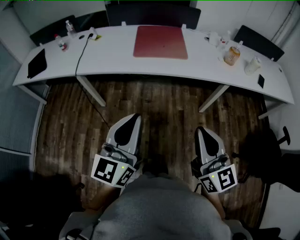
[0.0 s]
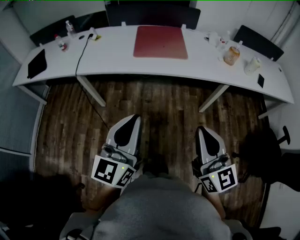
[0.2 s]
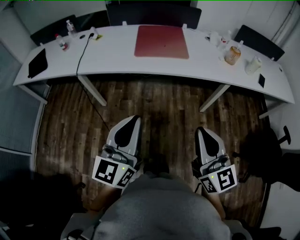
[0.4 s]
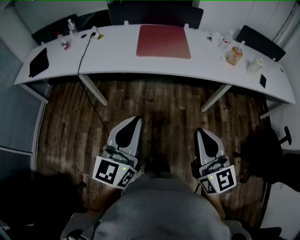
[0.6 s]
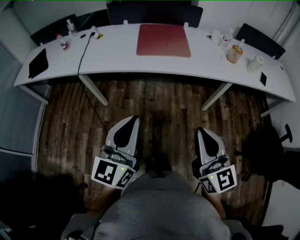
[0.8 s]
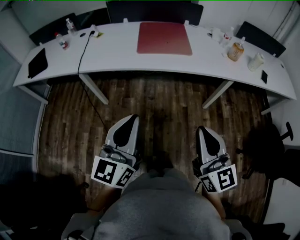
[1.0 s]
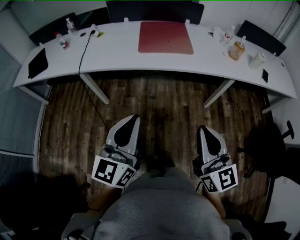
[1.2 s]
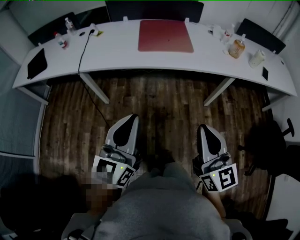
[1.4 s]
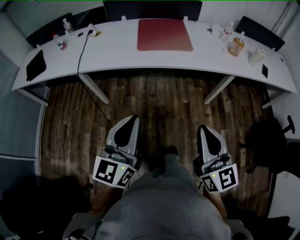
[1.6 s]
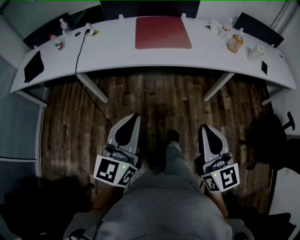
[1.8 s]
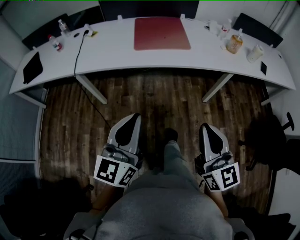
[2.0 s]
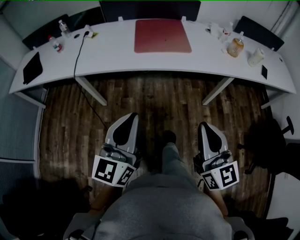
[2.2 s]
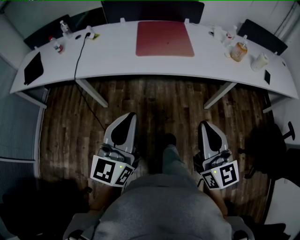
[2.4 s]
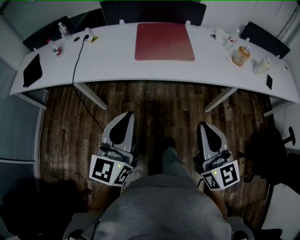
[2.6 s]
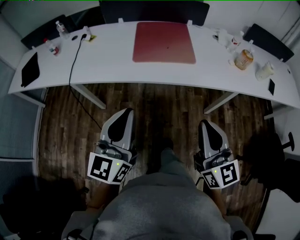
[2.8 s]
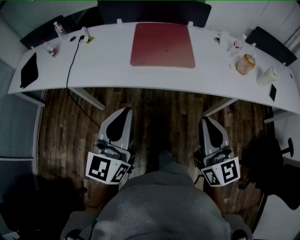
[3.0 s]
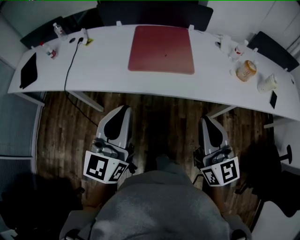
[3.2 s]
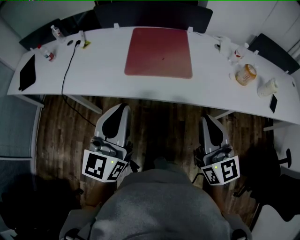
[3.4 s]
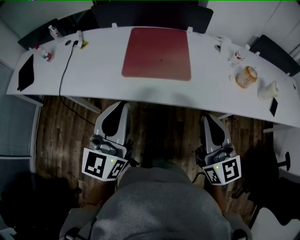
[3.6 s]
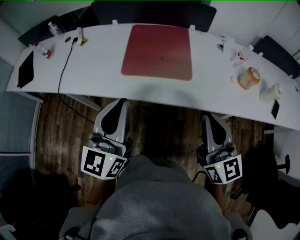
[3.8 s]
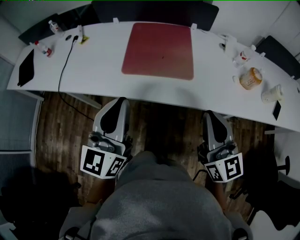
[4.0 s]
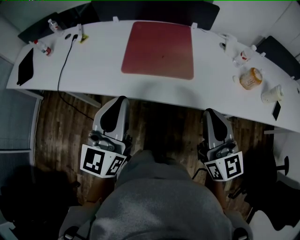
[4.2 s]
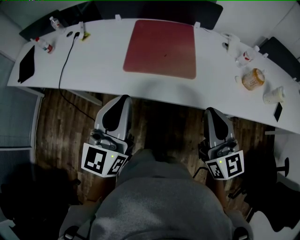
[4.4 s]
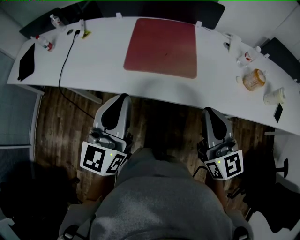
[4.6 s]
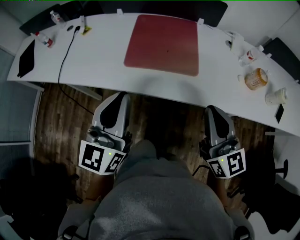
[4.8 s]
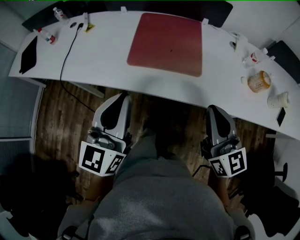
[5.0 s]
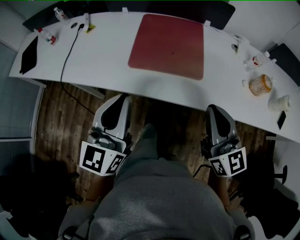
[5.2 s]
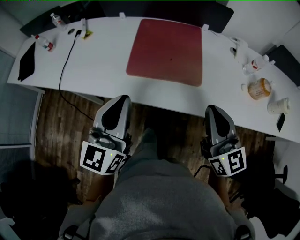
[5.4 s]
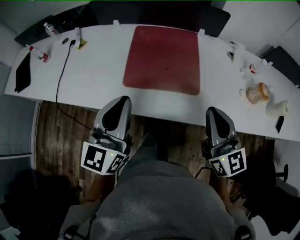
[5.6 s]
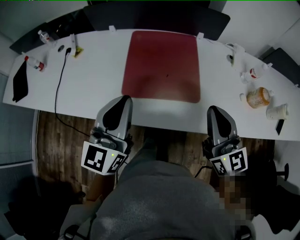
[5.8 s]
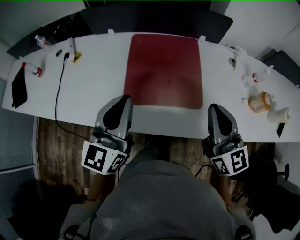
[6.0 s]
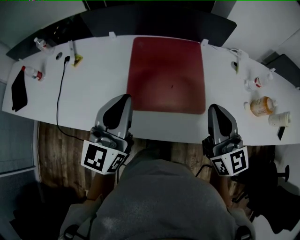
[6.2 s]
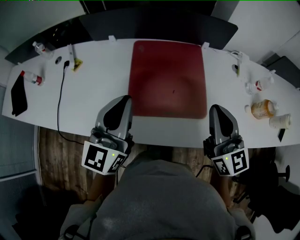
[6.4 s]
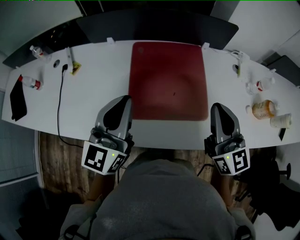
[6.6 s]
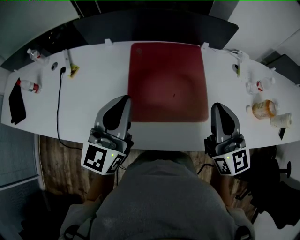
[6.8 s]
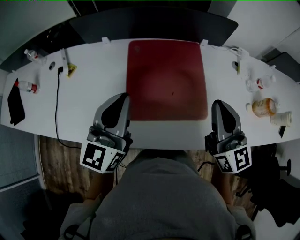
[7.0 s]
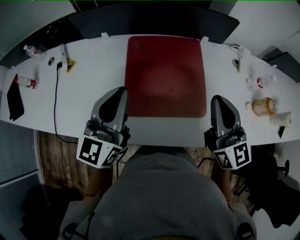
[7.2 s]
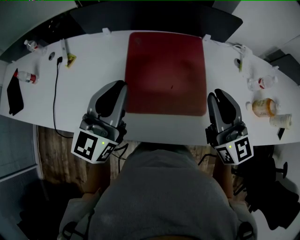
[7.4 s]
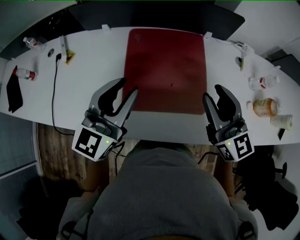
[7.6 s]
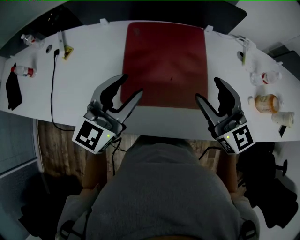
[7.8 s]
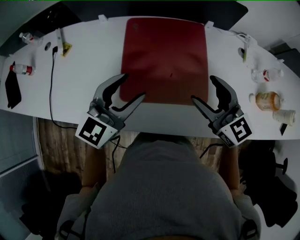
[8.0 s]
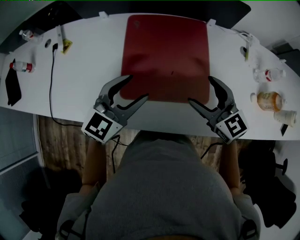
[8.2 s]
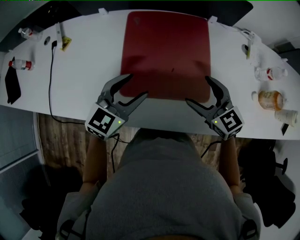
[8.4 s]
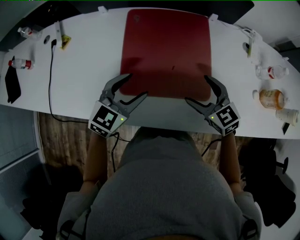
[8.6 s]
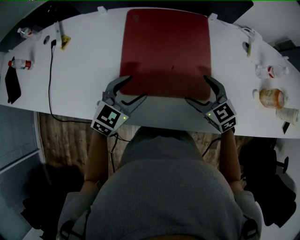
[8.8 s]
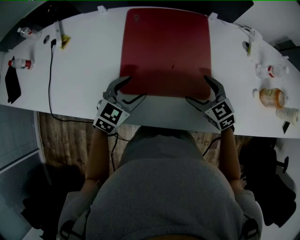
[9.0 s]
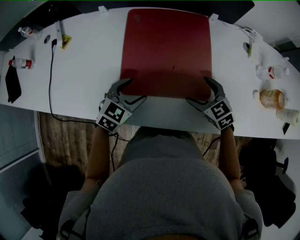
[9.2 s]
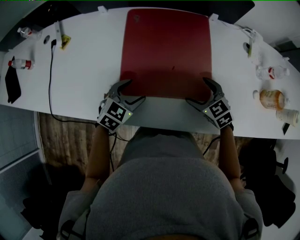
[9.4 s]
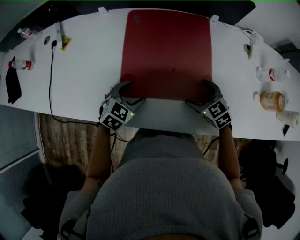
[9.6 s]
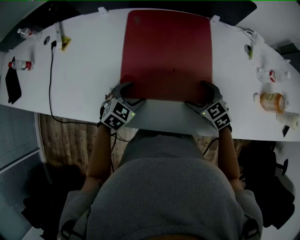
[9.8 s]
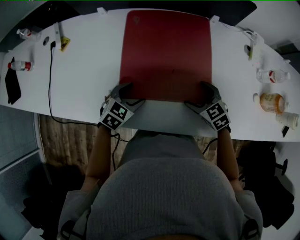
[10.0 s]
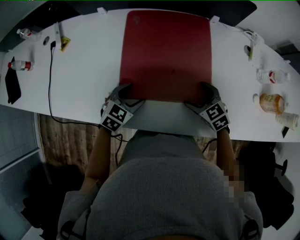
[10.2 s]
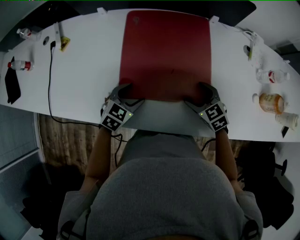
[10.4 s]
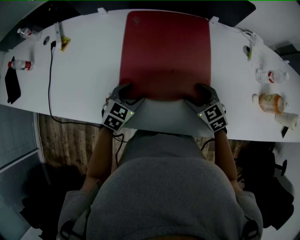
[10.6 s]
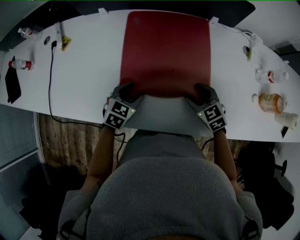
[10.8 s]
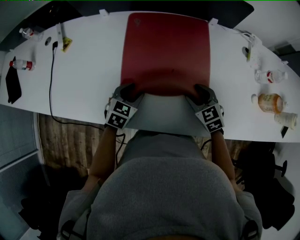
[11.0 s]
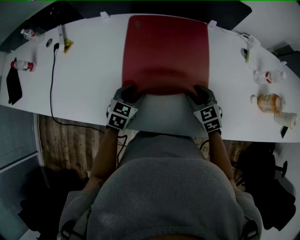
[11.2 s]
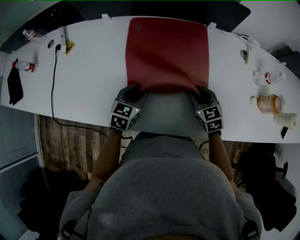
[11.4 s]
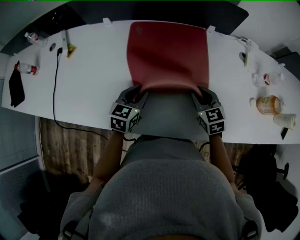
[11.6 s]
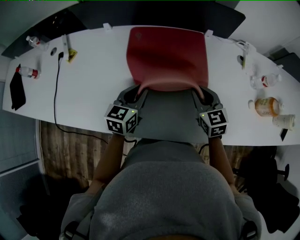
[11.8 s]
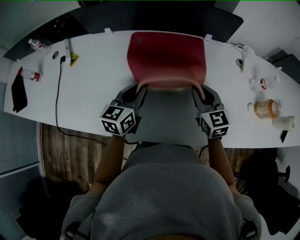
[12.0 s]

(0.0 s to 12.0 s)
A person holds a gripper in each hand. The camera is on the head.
0.0 s - 1.6 s: The right gripper moves roughly 5 cm; the left gripper shifts about 5 cm to the left.
1.6 s - 3.0 s: The two grippers go some 20 cm forward.
3.0 s - 4.4 s: The two grippers go approximately 15 cm forward and to the right.
4.4 s - 6.0 s: Both grippers move forward, about 20 cm.
6.0 s - 7.6 s: The two grippers go about 10 cm forward. The left gripper opens its fingers.
7.6 s - 9.0 s: The grippers both shift downward by some 25 cm. The left gripper tips its fingers downward by about 30 degrees, and opens up, while the right gripper tips its fingers downward by roughly 40 degrees, and opens its fingers.
9.0 s - 10.4 s: The left gripper is displaced downward by roughly 5 cm.
10.4 s - 12.0 s: The two grippers go approximately 15 cm upward and forward. The left gripper turns by roughly 40 degrees, and closes up. The right gripper swivels roughly 30 degrees, and closes up.

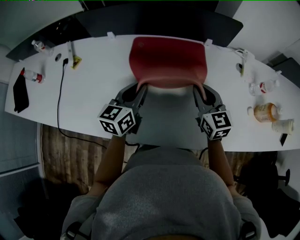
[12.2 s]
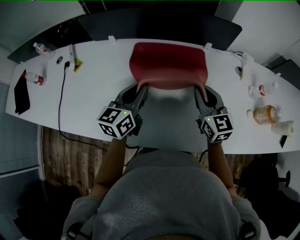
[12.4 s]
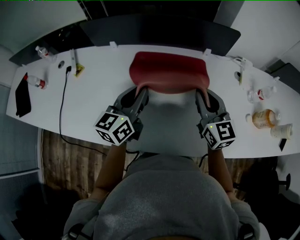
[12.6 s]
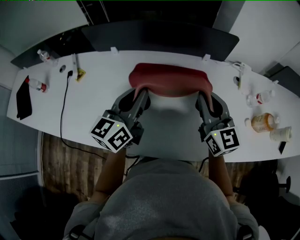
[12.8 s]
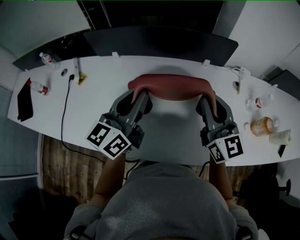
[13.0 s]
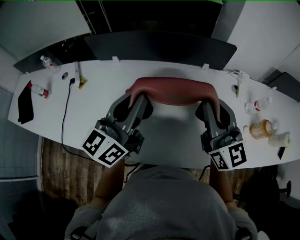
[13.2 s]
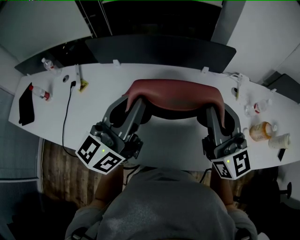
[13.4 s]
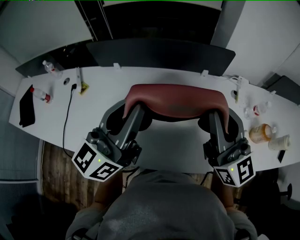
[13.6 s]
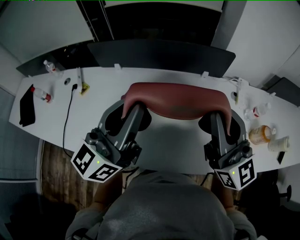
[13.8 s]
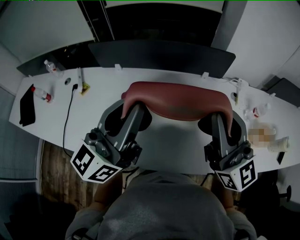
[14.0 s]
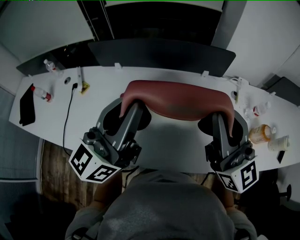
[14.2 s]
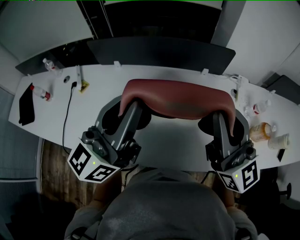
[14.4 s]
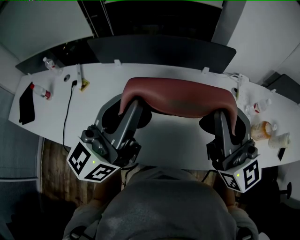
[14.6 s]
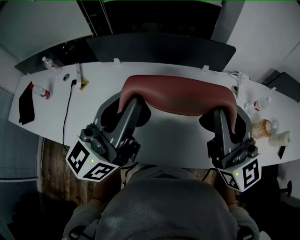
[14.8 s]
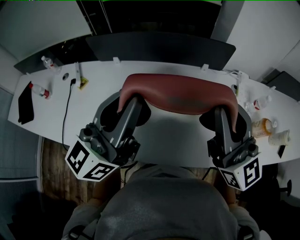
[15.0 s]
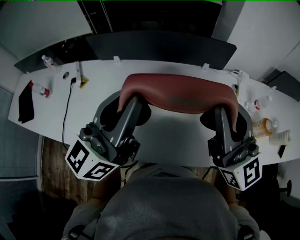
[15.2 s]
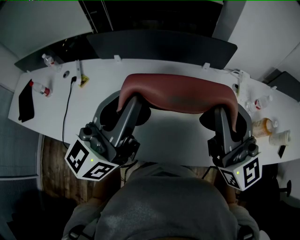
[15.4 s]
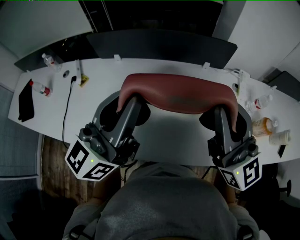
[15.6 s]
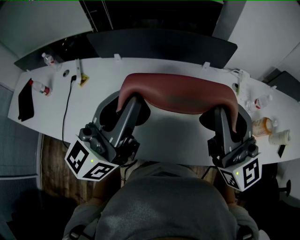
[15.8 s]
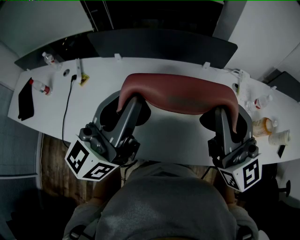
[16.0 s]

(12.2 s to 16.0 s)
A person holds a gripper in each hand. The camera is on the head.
12.2 s - 13.4 s: The grippers both shift upward by some 20 cm. The left gripper swivels approximately 30 degrees; the right gripper angles its fingers upward, by approximately 30 degrees.
13.4 s - 14.8 s: The right gripper goes roughly 5 cm upward. The left gripper moves roughly 5 cm.
14.8 s - 16.0 s: The two grippers keep their place.

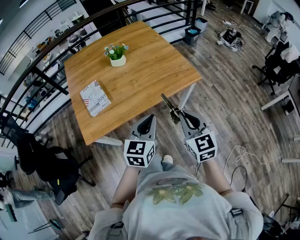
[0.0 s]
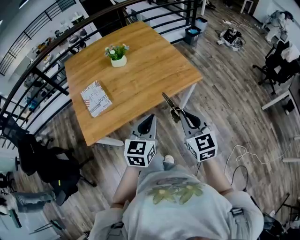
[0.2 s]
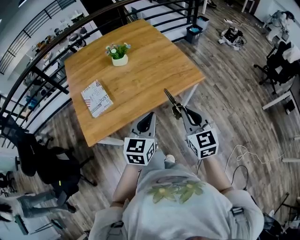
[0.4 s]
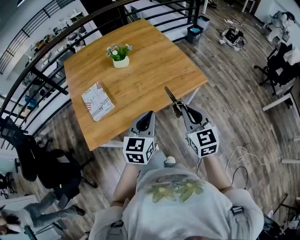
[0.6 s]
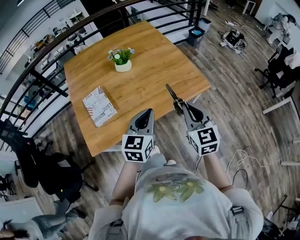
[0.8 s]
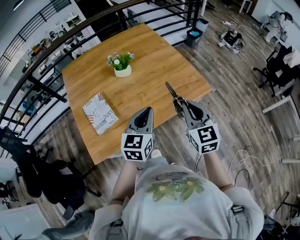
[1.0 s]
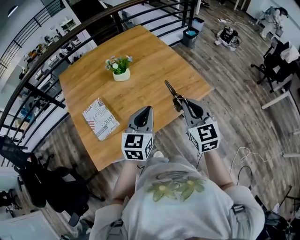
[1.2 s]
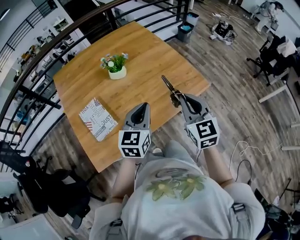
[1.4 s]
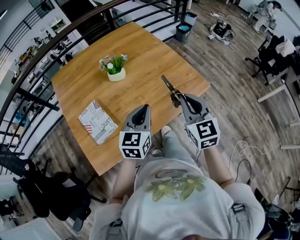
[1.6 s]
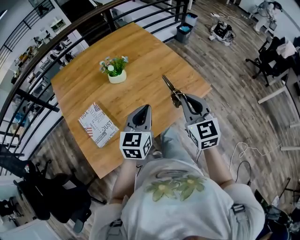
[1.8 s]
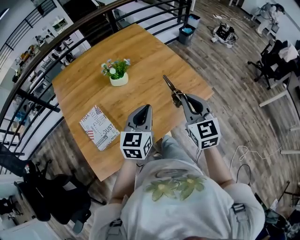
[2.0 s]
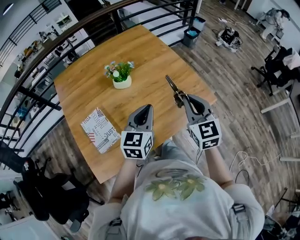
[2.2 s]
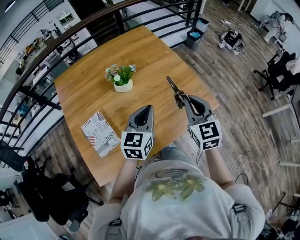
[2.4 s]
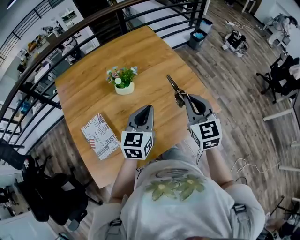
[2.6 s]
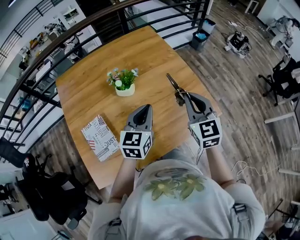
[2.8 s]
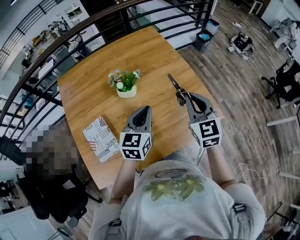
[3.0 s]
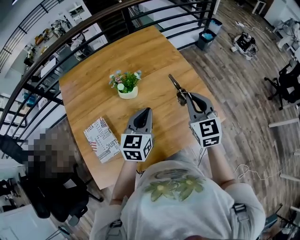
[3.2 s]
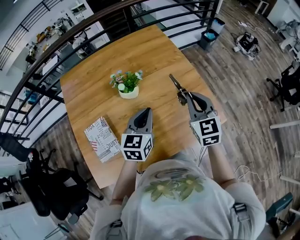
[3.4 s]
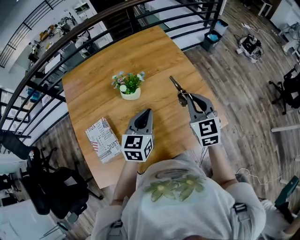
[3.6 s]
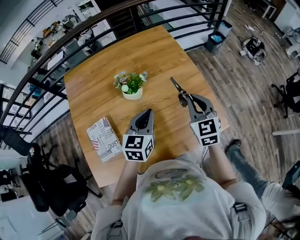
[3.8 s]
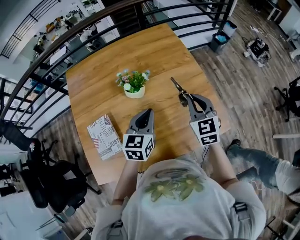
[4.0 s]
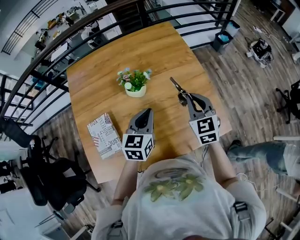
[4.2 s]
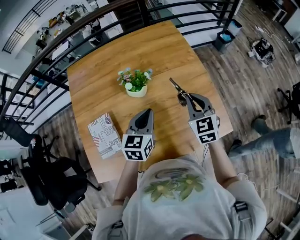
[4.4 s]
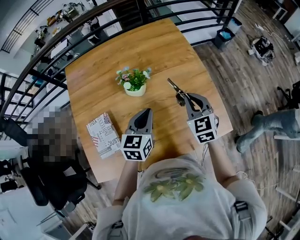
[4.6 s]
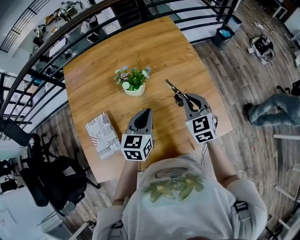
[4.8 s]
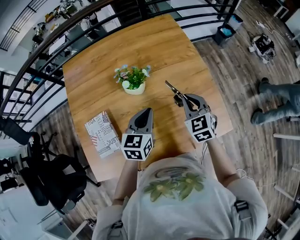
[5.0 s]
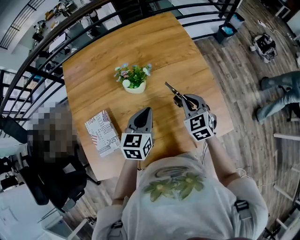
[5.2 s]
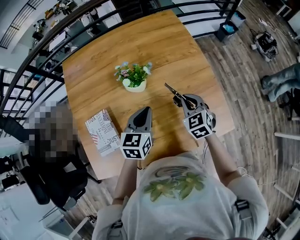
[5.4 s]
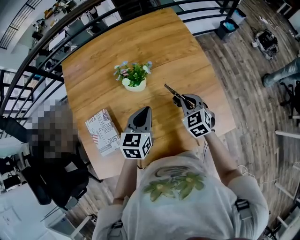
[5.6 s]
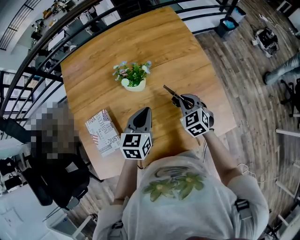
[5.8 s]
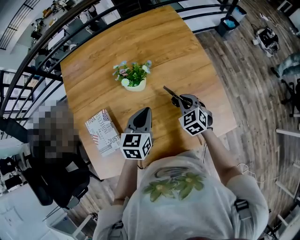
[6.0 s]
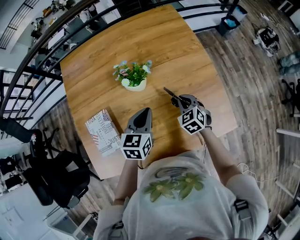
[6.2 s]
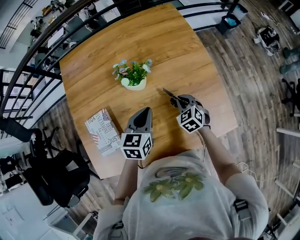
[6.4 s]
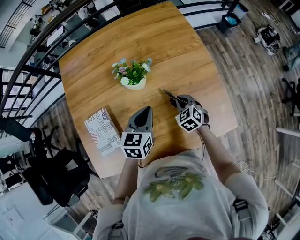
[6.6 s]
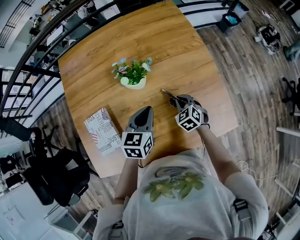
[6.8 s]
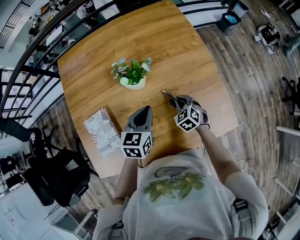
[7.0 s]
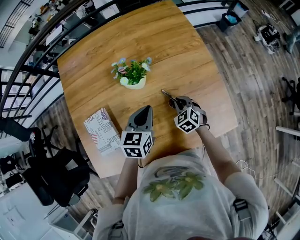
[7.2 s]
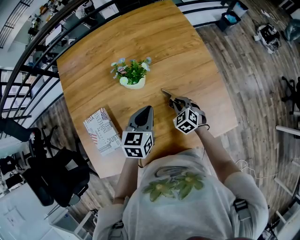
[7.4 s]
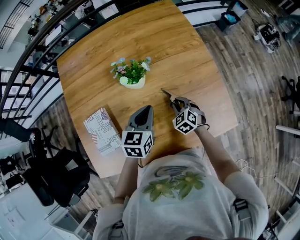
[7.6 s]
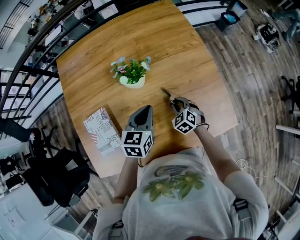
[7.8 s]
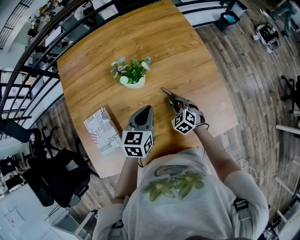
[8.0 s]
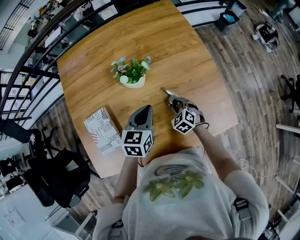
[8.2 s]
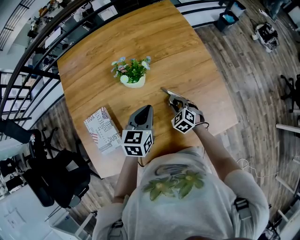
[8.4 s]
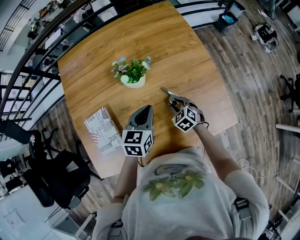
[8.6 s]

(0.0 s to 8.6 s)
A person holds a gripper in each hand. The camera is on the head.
0.0 s - 1.4 s: The two grippers go some 20 cm forward and to the left.
1.4 s - 2.8 s: Both grippers move forward, about 15 cm.
2.8 s - 4.4 s: The left gripper ends up about 5 cm from where it was. Meanwhile the right gripper travels forward and downward by approximately 15 cm.
4.4 s - 5.8 s: The right gripper moves downward, approximately 15 cm.
5.8 s - 7.2 s: The right gripper travels downward by approximately 10 cm.
7.2 s - 8.6 s: The right gripper opens its fingers.
